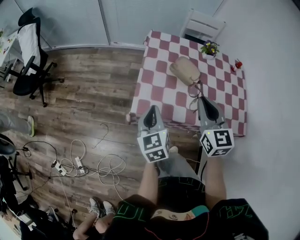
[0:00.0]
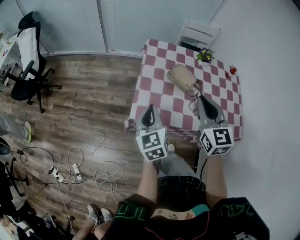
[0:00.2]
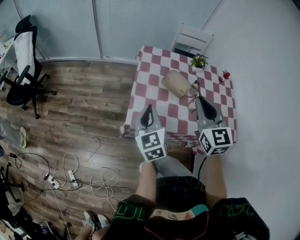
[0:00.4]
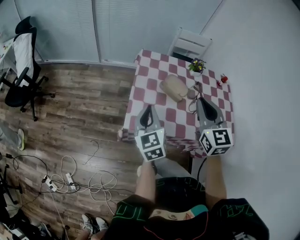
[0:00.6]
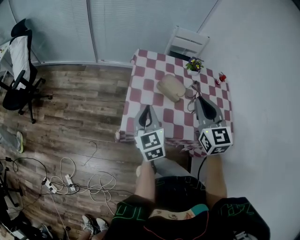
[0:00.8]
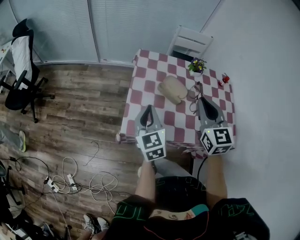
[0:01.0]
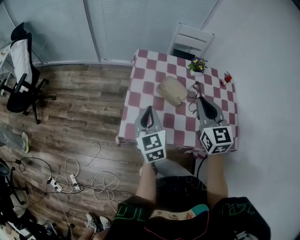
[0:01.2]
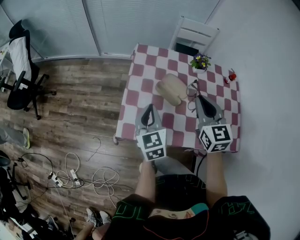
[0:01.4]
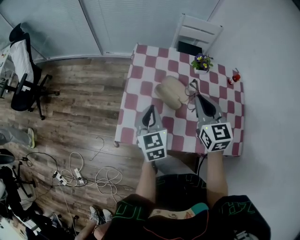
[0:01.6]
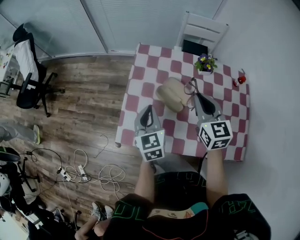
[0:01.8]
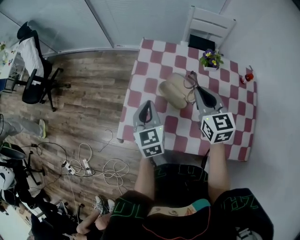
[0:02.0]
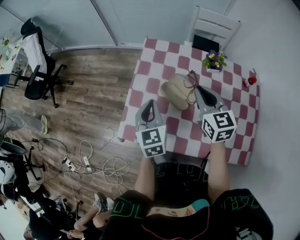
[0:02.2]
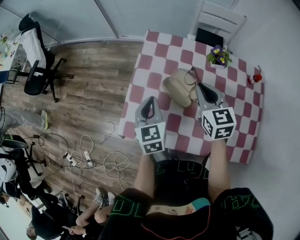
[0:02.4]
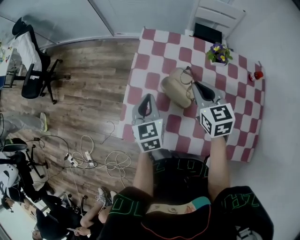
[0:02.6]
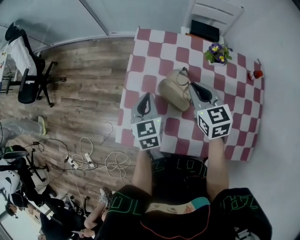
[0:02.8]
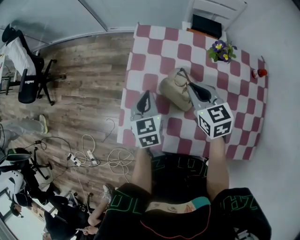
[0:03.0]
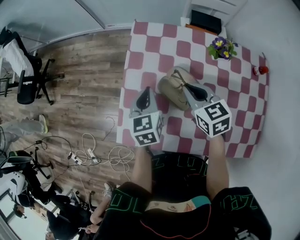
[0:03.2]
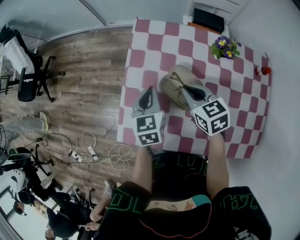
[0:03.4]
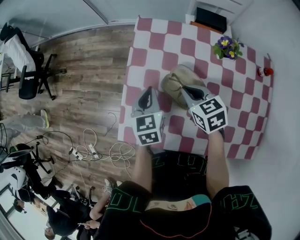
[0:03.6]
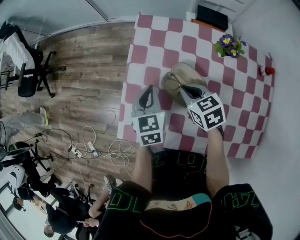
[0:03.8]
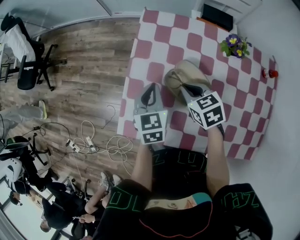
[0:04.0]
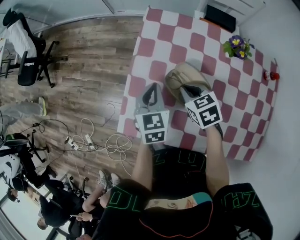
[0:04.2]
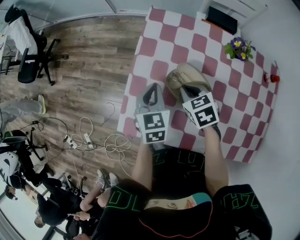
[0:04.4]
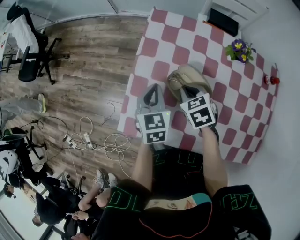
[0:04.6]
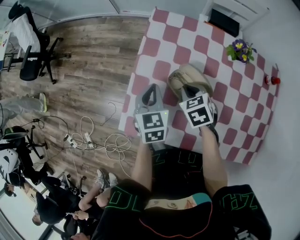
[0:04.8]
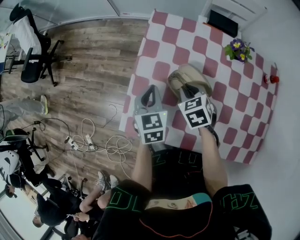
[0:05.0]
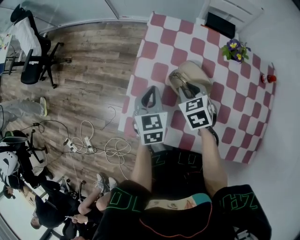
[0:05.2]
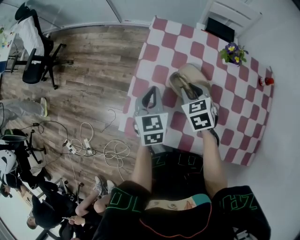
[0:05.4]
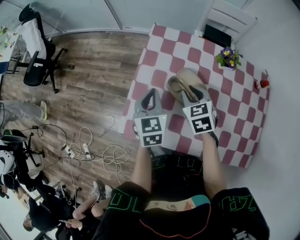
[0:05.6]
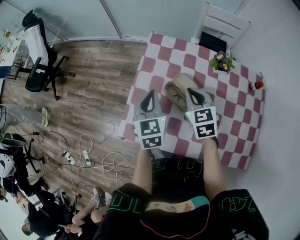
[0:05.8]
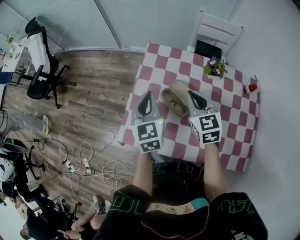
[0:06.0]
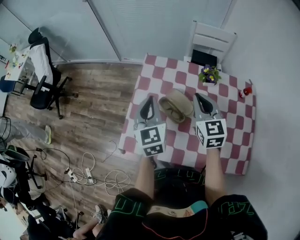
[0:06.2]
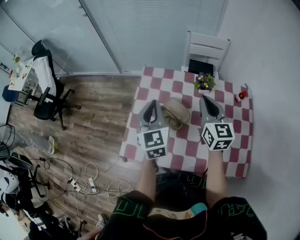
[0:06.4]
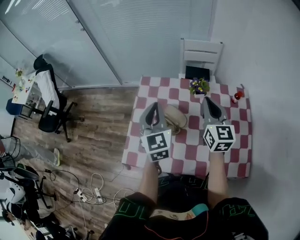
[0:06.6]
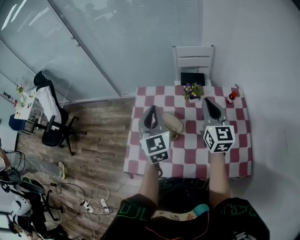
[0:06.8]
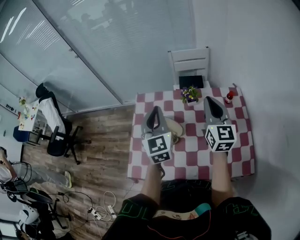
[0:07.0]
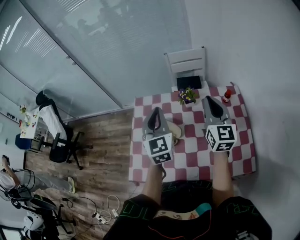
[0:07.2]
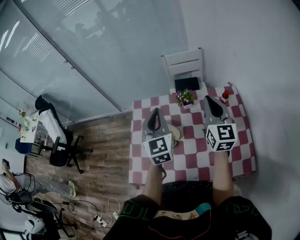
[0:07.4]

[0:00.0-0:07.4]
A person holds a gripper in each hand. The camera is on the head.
0:00.0 to 0:01.4: Both grippers move forward and to the right, approximately 15 cm.
0:01.4 to 0:03.0: The right gripper moves downward and forward, approximately 20 cm, and rotates roughly 30 degrees; the left gripper moves forward and downward, some 15 cm.
0:03.0 to 0:04.4: The right gripper shifts some 10 cm downward and to the left, and changes its angle by roughly 20 degrees.
0:04.4 to 0:06.0: The two grippers go some 15 cm upward. The right gripper swivels about 30 degrees, and opens, then closes once more.
0:06.0 to 0:07.4: The two grippers go some 25 cm to the right and upward. The right gripper turns by some 40 degrees. The left gripper turns by roughly 20 degrees.

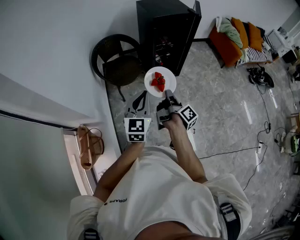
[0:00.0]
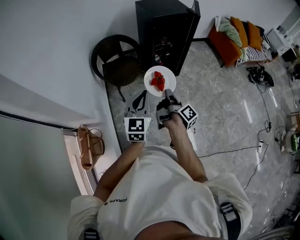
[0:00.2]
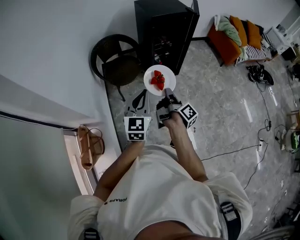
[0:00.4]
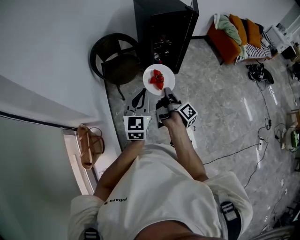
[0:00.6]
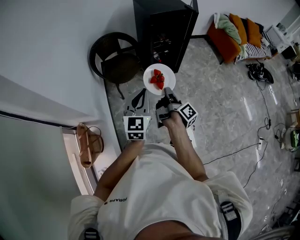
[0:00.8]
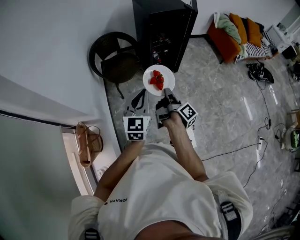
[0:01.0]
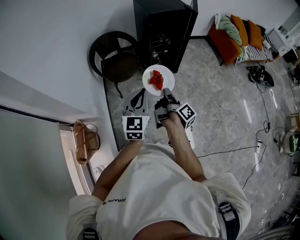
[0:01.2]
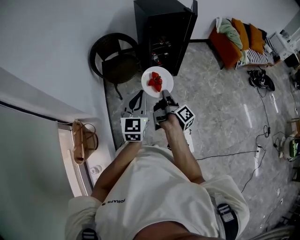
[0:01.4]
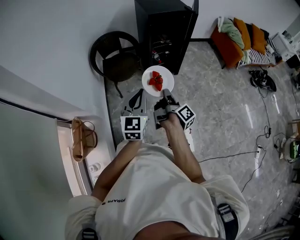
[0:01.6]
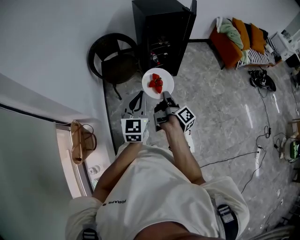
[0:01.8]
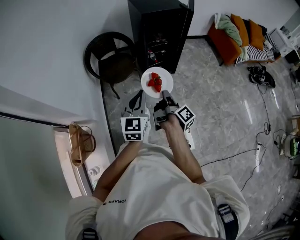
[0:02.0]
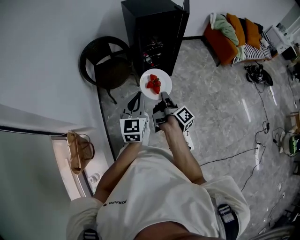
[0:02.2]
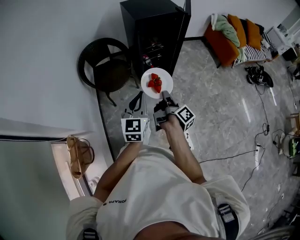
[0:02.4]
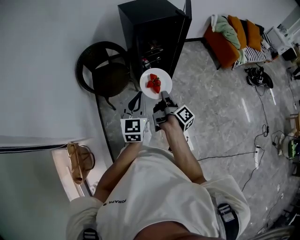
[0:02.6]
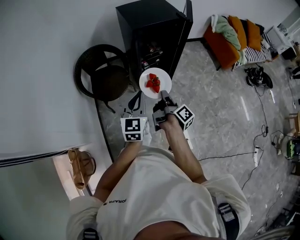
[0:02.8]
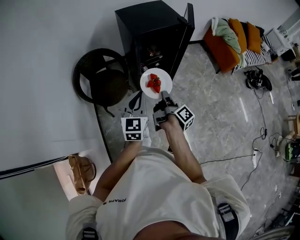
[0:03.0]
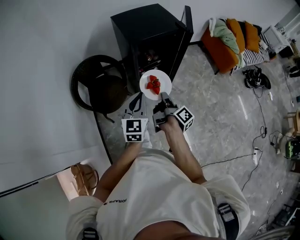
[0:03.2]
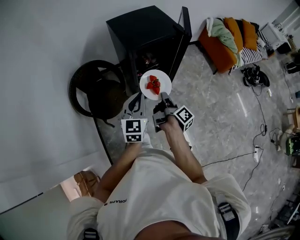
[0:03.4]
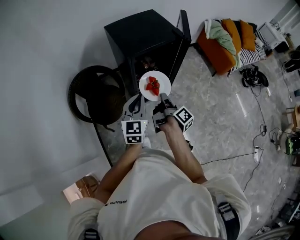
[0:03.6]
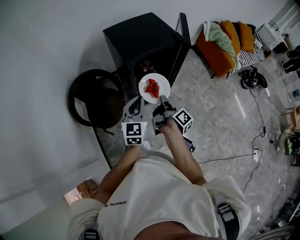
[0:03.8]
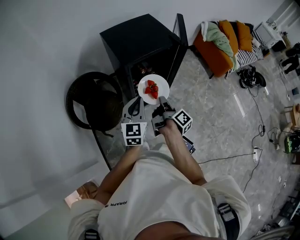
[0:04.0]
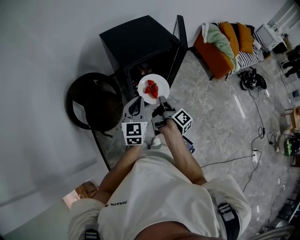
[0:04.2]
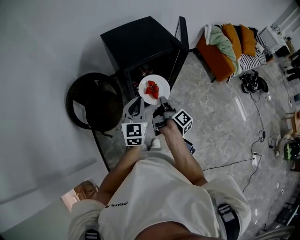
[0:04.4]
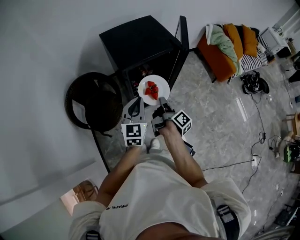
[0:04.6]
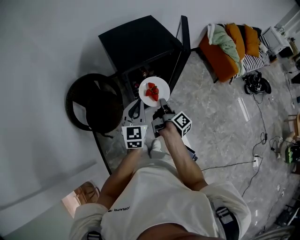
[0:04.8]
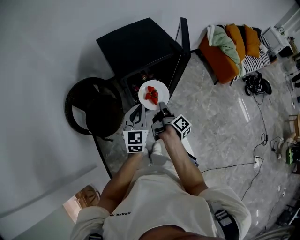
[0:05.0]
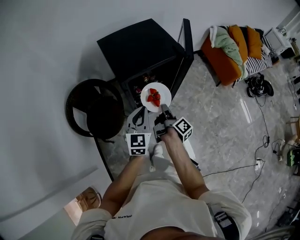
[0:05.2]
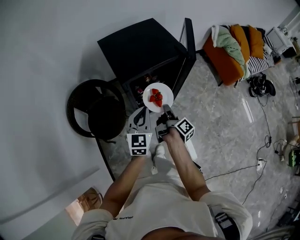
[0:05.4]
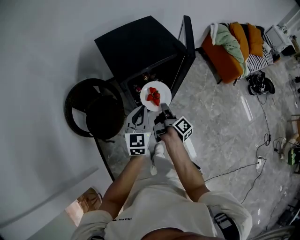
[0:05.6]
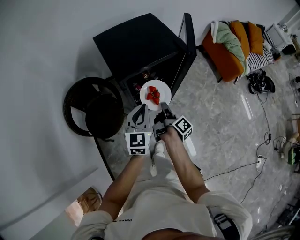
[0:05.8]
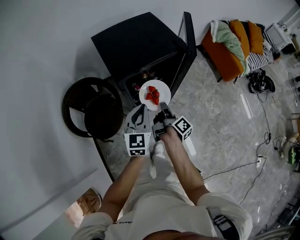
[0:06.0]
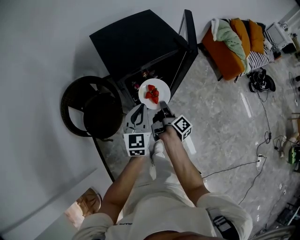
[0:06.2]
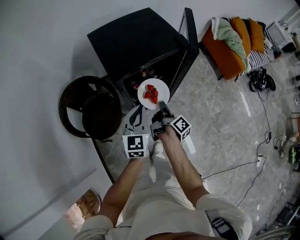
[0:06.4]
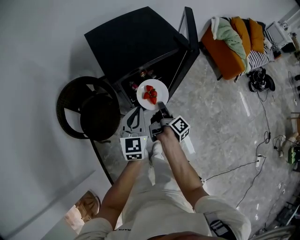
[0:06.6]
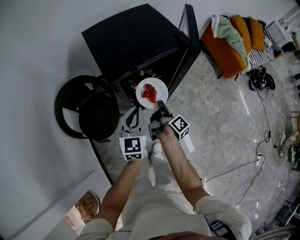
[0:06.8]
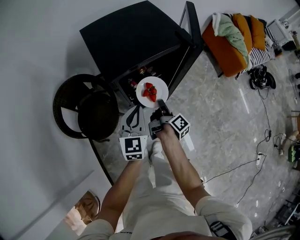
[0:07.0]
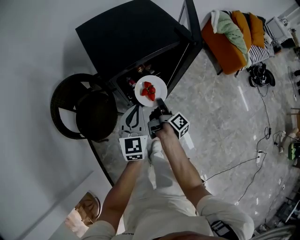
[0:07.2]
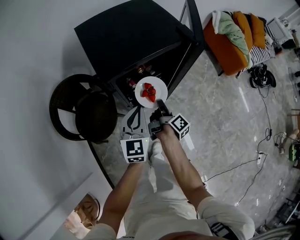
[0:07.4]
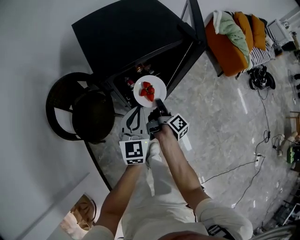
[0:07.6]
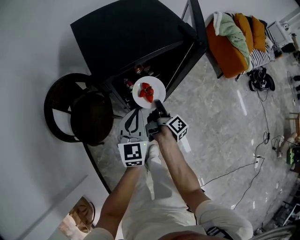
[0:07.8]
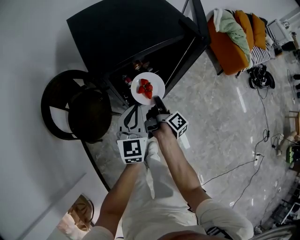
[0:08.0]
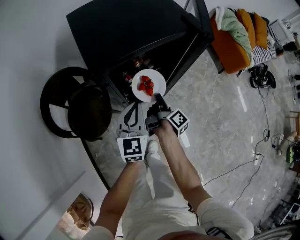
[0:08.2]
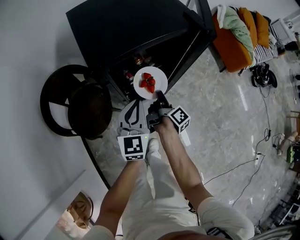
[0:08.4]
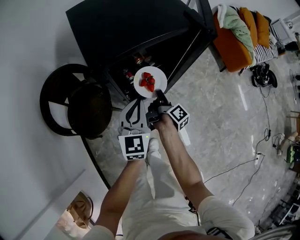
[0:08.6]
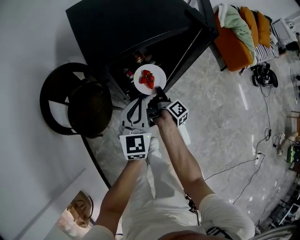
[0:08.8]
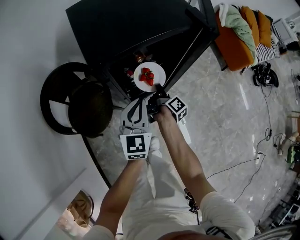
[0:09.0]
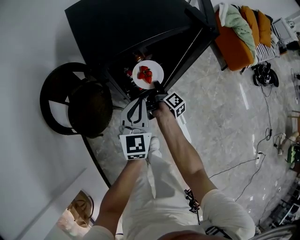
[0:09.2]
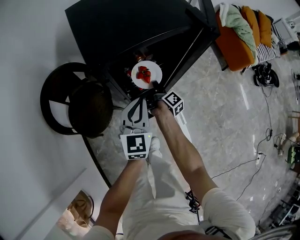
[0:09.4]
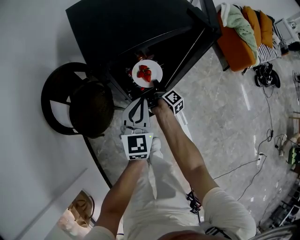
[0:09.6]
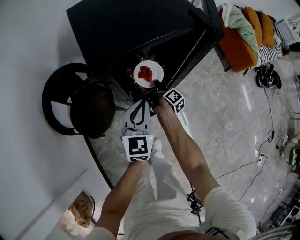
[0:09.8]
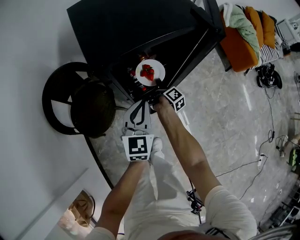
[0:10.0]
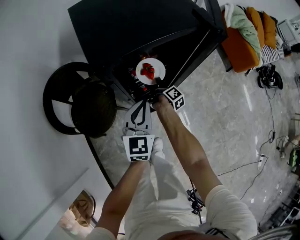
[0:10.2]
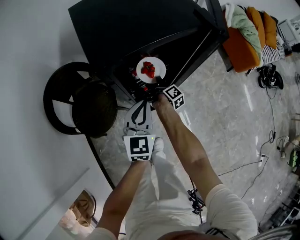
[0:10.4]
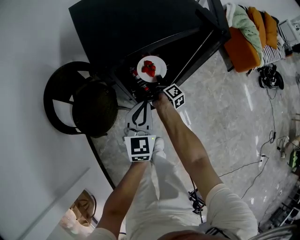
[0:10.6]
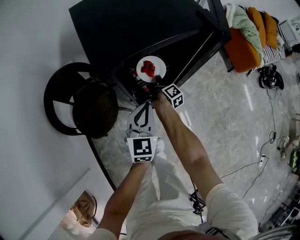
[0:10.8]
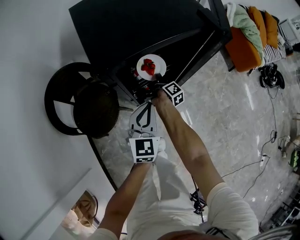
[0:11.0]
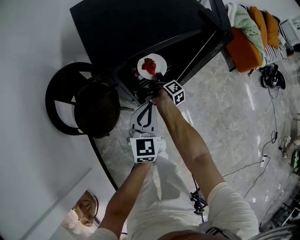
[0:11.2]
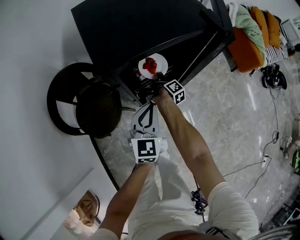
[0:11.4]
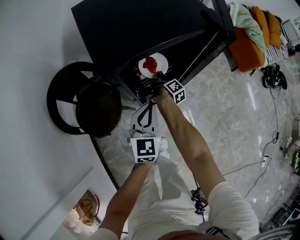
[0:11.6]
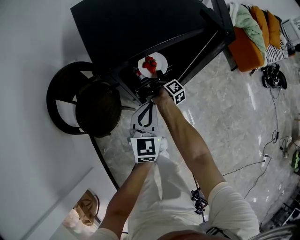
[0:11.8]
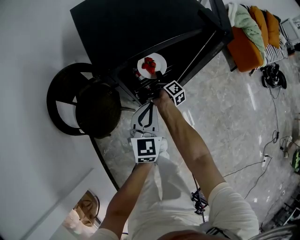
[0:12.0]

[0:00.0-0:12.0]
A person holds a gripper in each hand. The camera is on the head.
0:00.0 to 0:01.6: The left gripper shifts by approximately 5 cm.
0:01.6 to 0:03.0: The left gripper ends up approximately 30 cm from where it was.
0:03.0 to 0:04.4: The left gripper moves approximately 15 cm.
0:04.4 to 0:06.0: The left gripper shifts by roughly 10 cm.
0:06.0 to 0:07.6: The left gripper moves downward, some 10 cm.

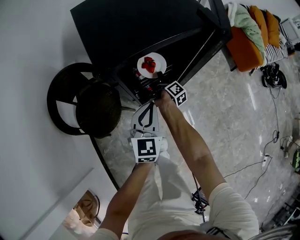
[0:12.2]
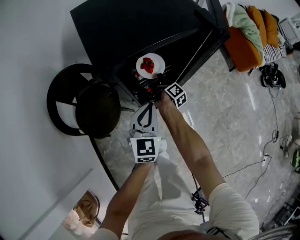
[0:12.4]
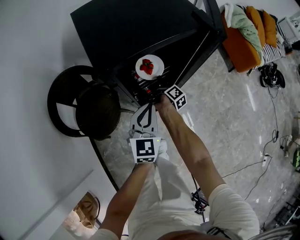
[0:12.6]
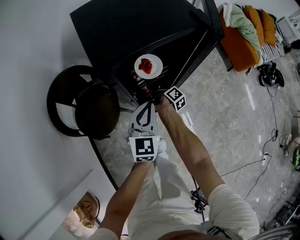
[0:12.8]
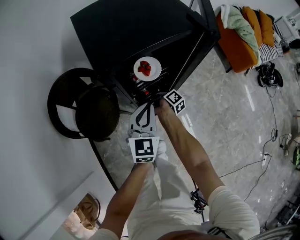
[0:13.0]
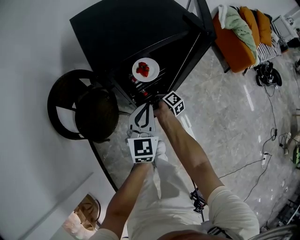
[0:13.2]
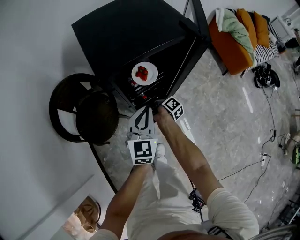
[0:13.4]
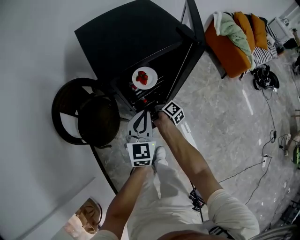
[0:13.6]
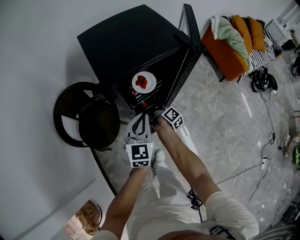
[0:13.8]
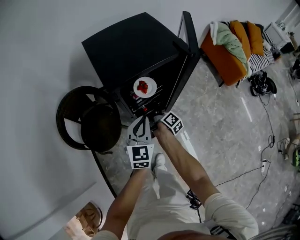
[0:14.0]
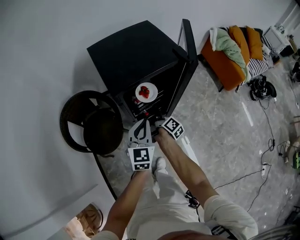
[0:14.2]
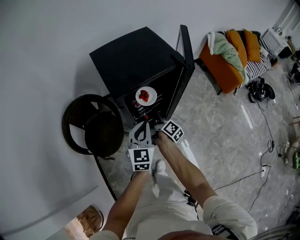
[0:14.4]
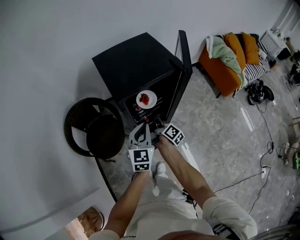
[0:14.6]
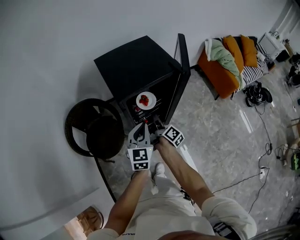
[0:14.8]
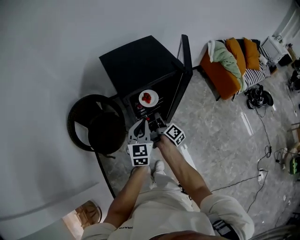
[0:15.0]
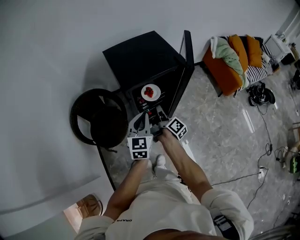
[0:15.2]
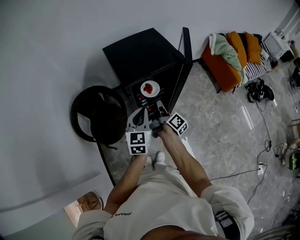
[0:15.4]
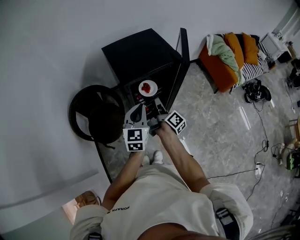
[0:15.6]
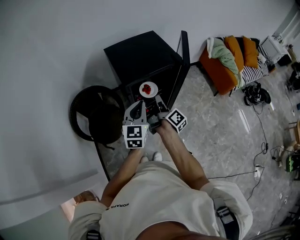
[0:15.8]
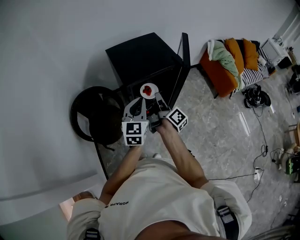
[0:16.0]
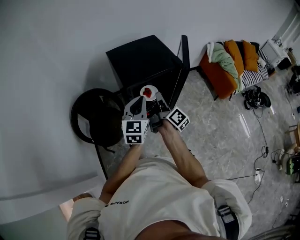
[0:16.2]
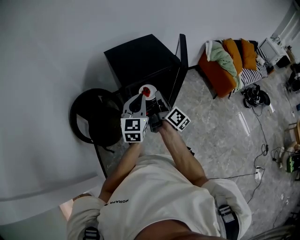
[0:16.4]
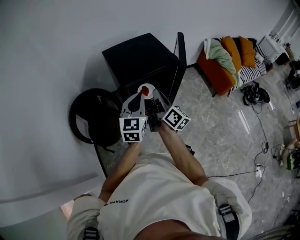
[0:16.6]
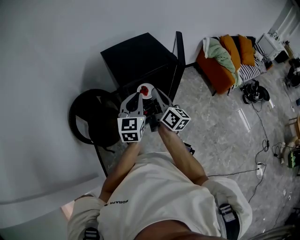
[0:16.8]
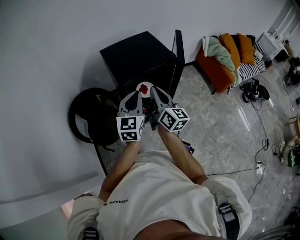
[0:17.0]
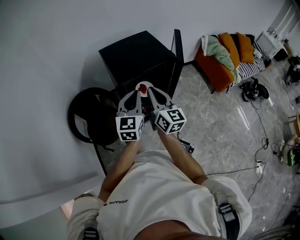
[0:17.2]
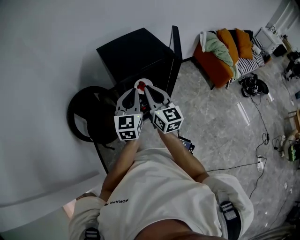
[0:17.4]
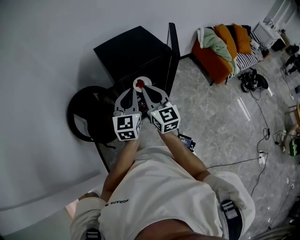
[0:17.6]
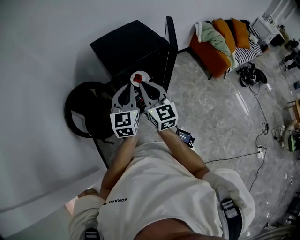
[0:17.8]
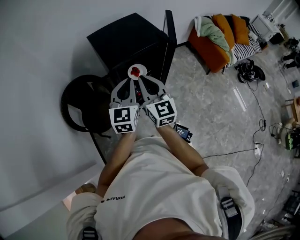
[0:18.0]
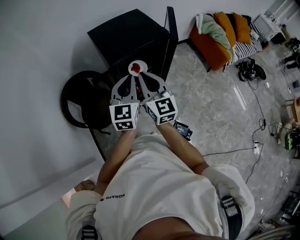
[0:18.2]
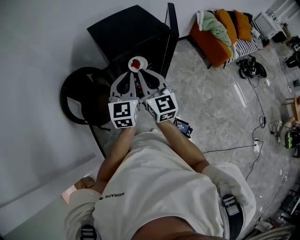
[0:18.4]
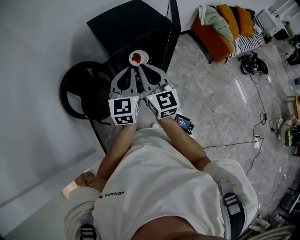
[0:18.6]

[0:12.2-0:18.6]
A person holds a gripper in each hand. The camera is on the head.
0:12.2 to 0:13.8: The left gripper heads upward, covering some 5 cm.
0:13.8 to 0:15.4: The left gripper shifts about 15 cm upward.
0:15.4 to 0:17.0: The left gripper moves upward, approximately 5 cm.
